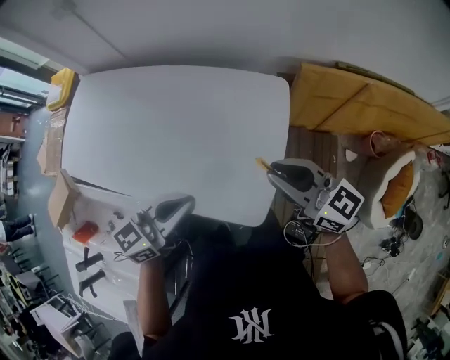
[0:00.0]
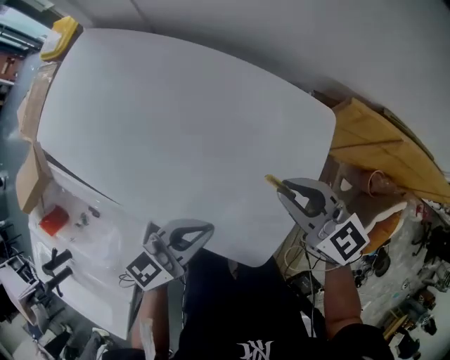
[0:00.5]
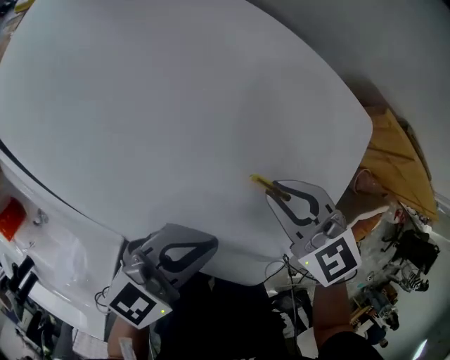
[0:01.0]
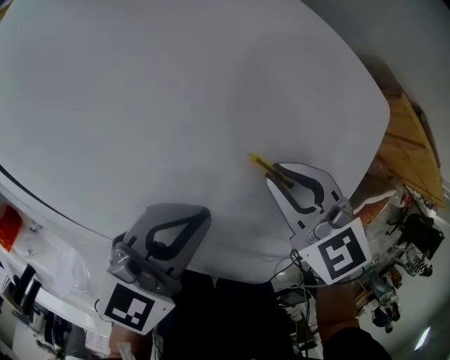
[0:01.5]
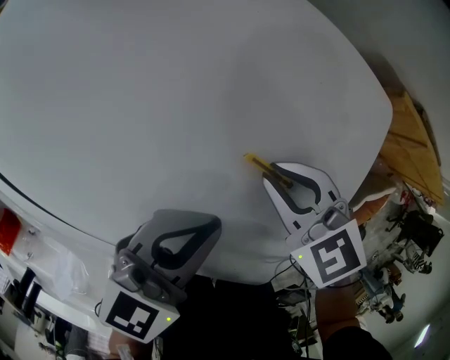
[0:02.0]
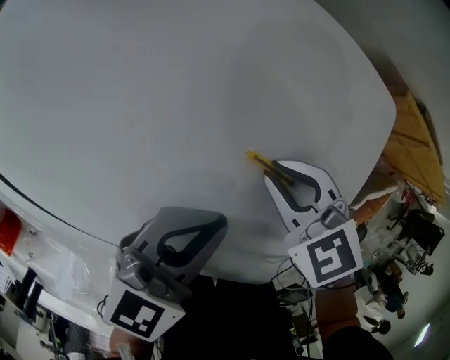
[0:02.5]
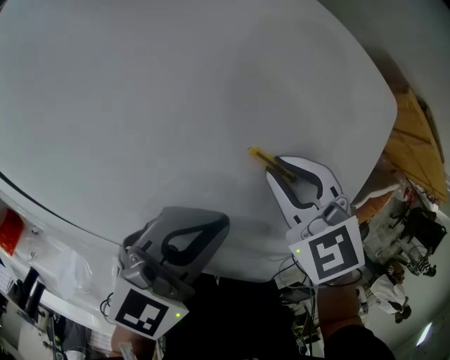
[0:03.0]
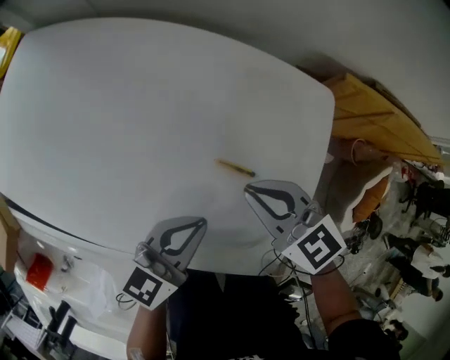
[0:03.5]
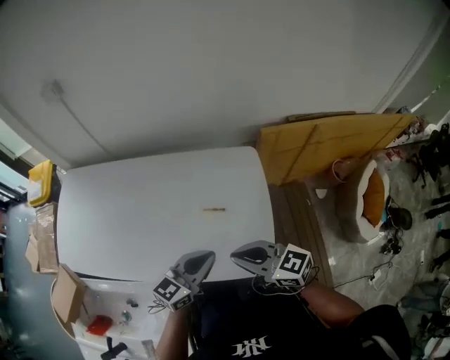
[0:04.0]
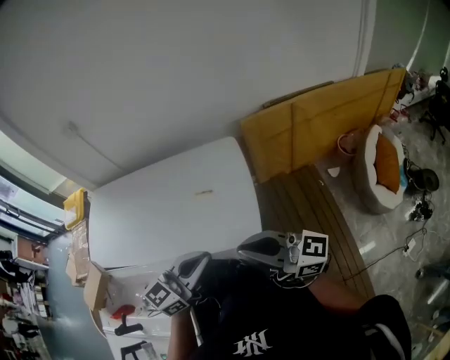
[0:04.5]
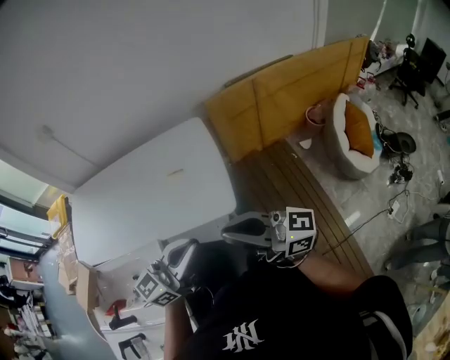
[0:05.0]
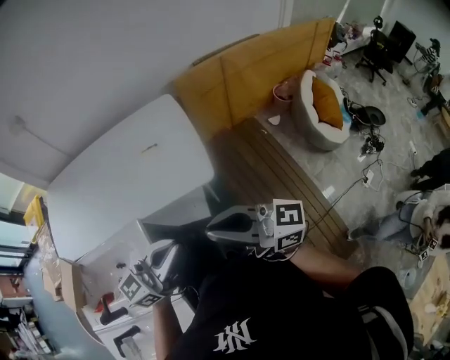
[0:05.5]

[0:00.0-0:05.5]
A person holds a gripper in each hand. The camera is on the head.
0:00.0 to 0:02.0: The right gripper goes roughly 35 cm downward, forward and to the left, and tips its fingers downward by about 40 degrees. Meanwhile the left gripper heads downward and forward, covering roughly 25 cm.
0:02.0 to 0:03.5: The right gripper shifts approximately 10 cm upward.
0:03.5 to 0:05.5: The pair of grippers is taken about 50 cm. The left gripper rotates roughly 40 degrees; the right gripper tips its fingers upward by roughly 50 degrees.

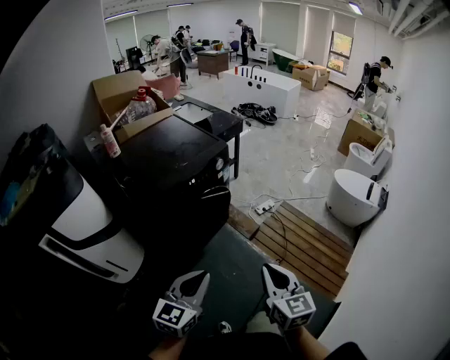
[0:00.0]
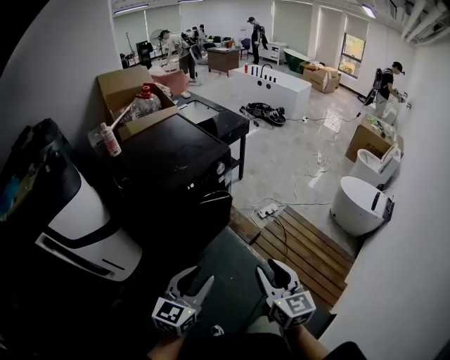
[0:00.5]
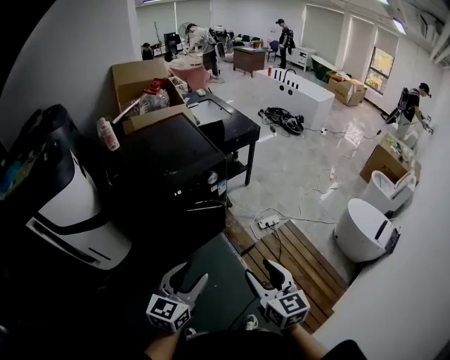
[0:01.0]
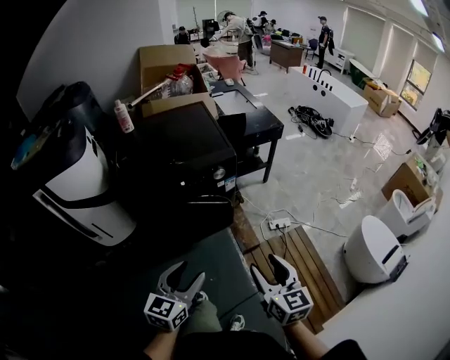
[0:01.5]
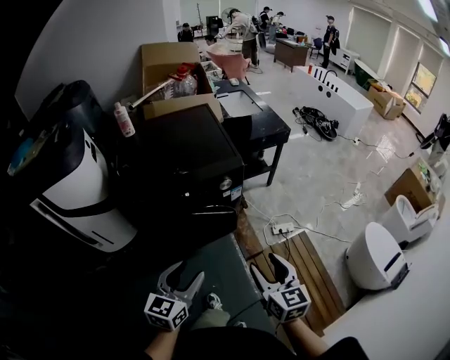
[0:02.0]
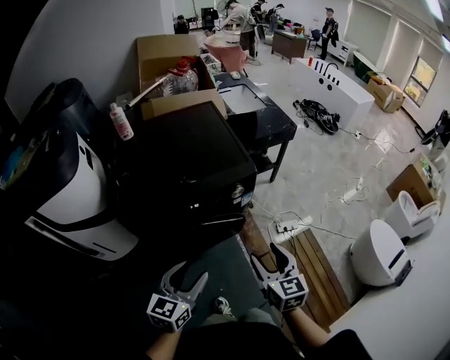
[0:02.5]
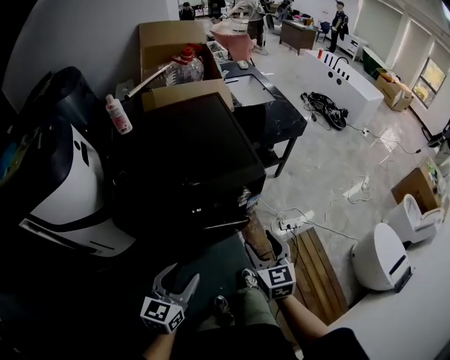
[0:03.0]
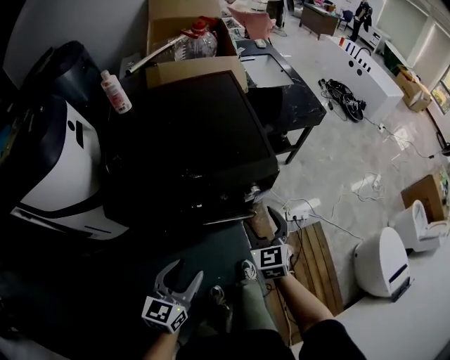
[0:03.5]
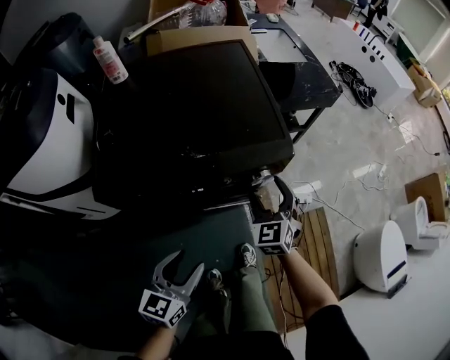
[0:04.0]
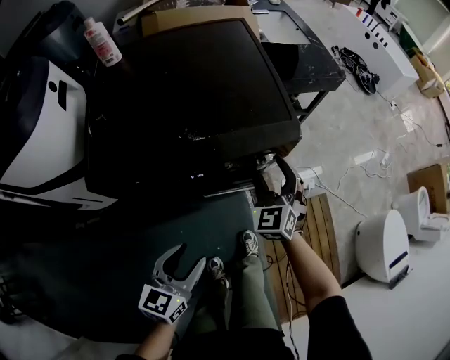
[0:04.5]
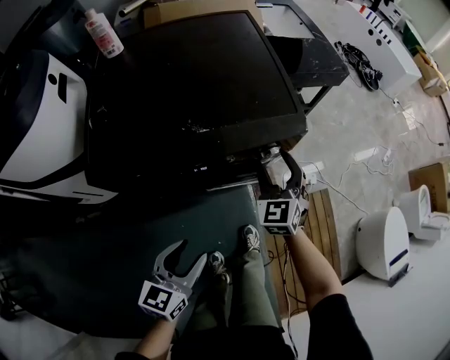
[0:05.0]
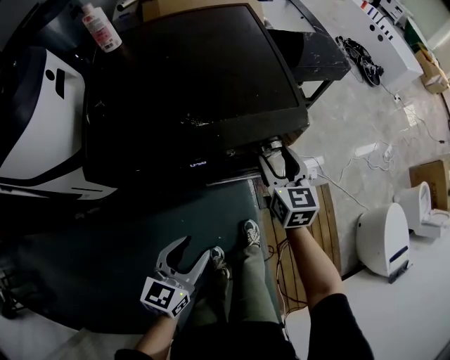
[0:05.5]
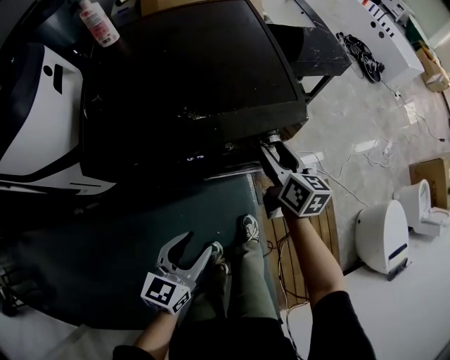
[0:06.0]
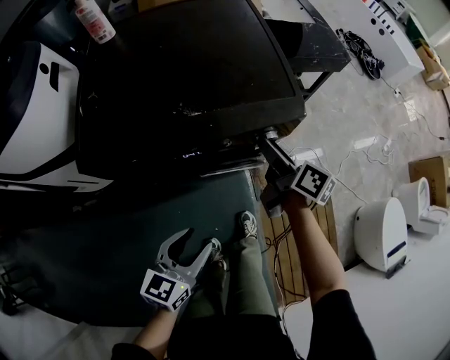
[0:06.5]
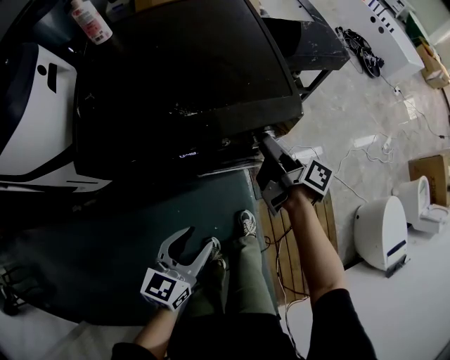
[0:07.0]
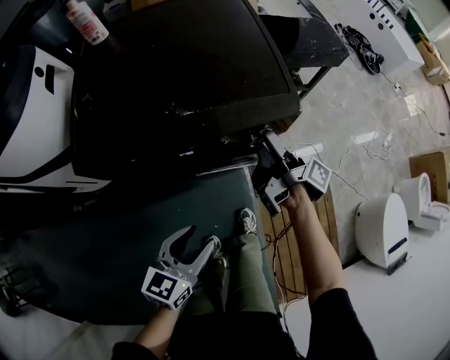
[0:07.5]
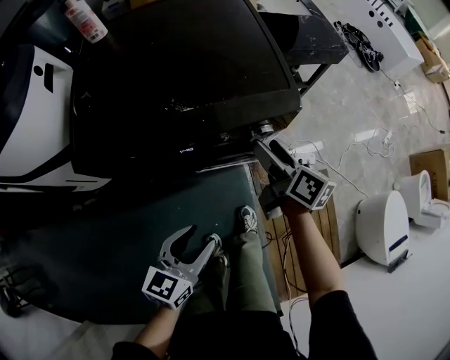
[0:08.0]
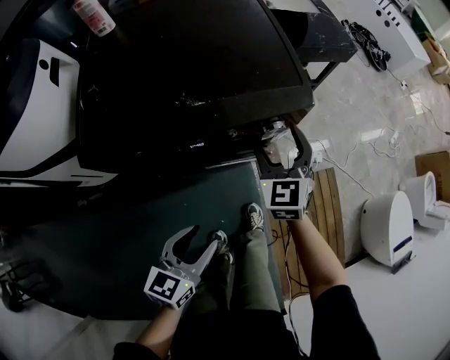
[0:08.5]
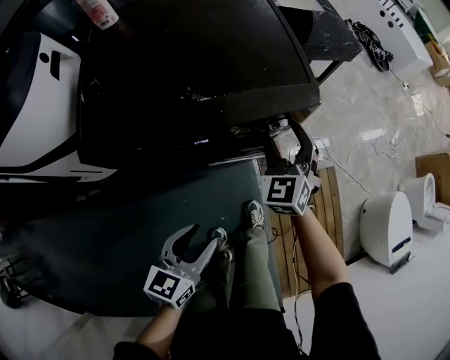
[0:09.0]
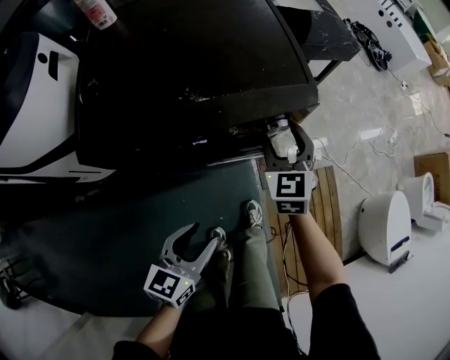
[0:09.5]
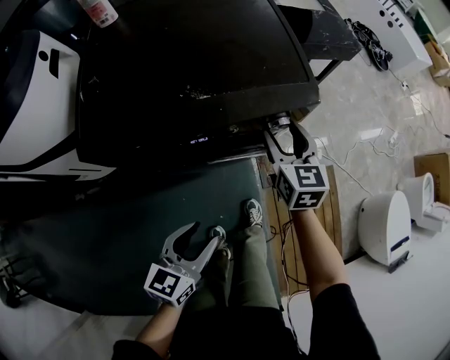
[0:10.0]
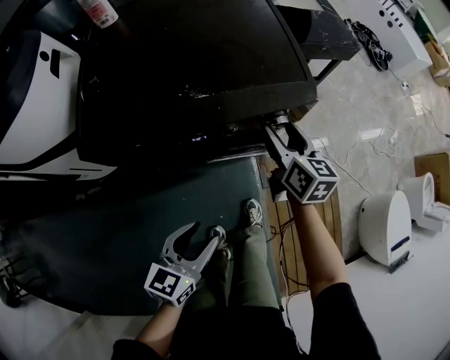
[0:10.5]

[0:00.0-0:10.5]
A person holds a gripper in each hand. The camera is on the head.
0:00.0 to 0:02.0: The left gripper shifts by about 25 cm, changes its angle by some 30 degrees, and opens. Meanwhile the right gripper moves approximately 30 cm, swivels roughly 30 degrees, and opens up.
0:02.0 to 0:04.0: The right gripper travels forward and downward by approximately 40 cm, and swivels some 40 degrees. Meanwhile the left gripper moves forward, downward and to the left, approximately 20 cm.
0:04.0 to 0:06.5: The right gripper rotates around the line of its fingers by roughly 80 degrees, clockwise from behind.
0:06.5 to 0:08.5: The right gripper rolls counterclockwise, seen from behind, by roughly 80 degrees.
0:08.5 to 0:10.5: The right gripper rolls clockwise, seen from behind, by some 40 degrees.

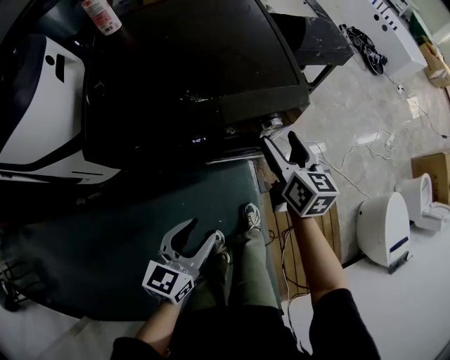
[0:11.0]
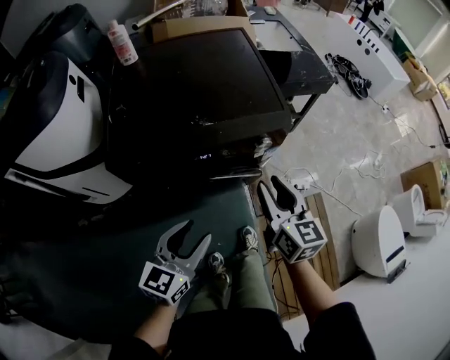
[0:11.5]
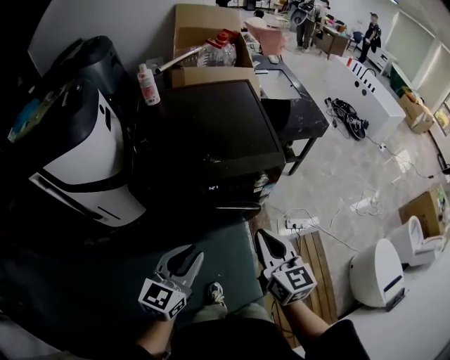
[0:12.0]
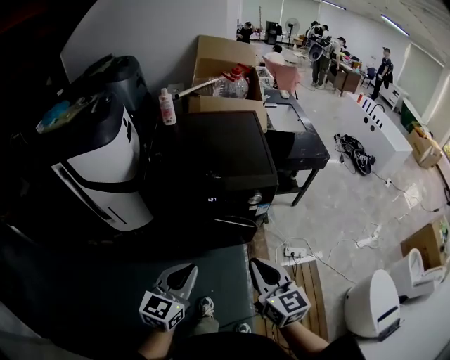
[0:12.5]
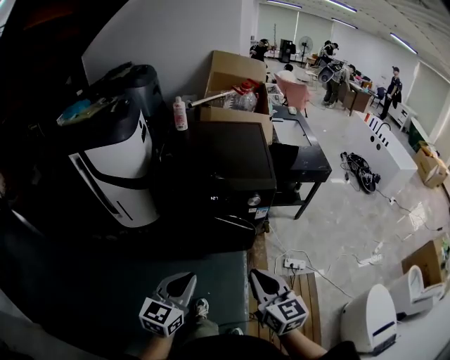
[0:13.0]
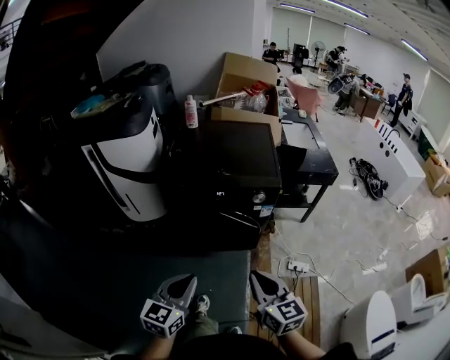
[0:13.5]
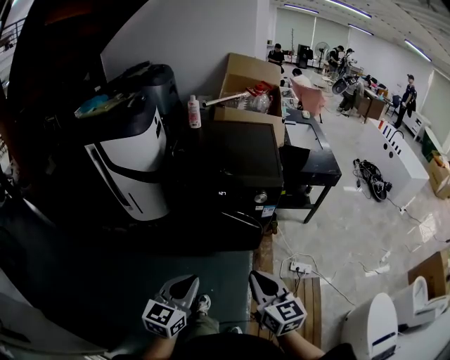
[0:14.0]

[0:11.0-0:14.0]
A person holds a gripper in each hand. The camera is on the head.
0:11.0 to 0:12.5: The left gripper goes some 20 cm upward and backward, changes its angle by some 20 degrees, and closes its fingers, while the right gripper travels backward and upward by about 35 cm, changes its angle by some 20 degrees, and closes up.
0:12.5 to 0:14.0: Both grippers move backward, about 10 cm.

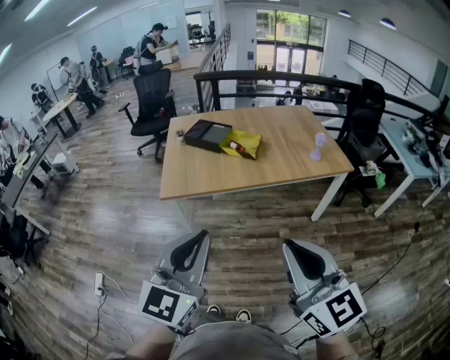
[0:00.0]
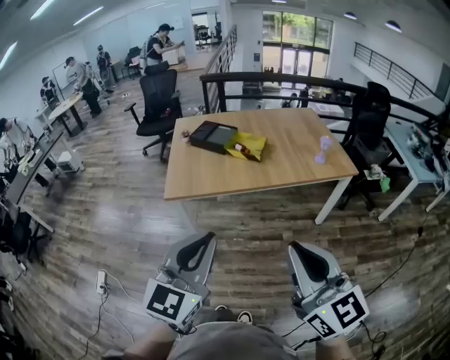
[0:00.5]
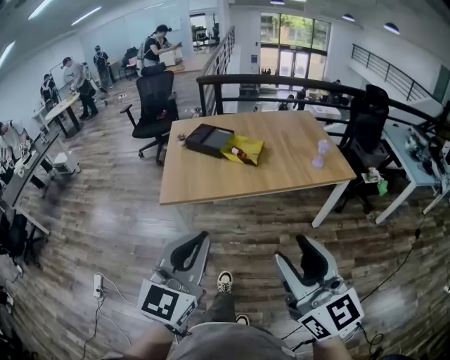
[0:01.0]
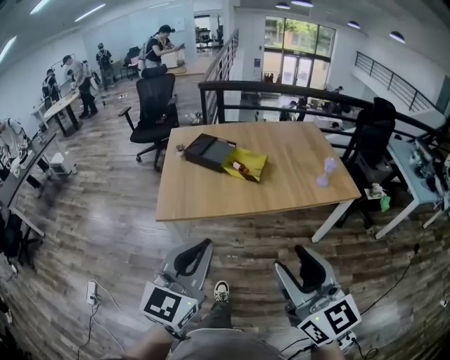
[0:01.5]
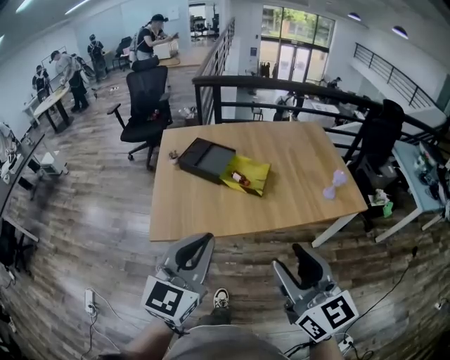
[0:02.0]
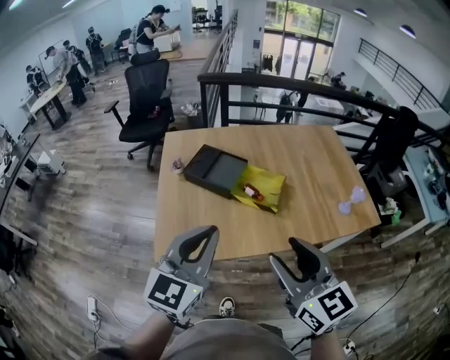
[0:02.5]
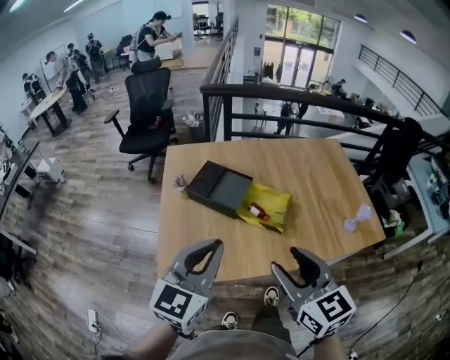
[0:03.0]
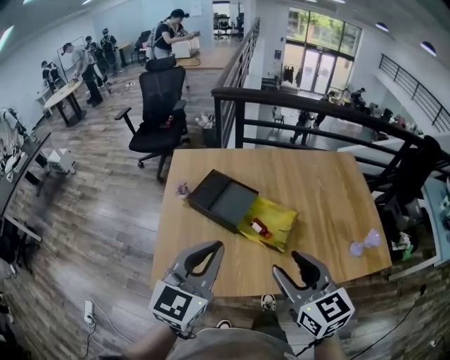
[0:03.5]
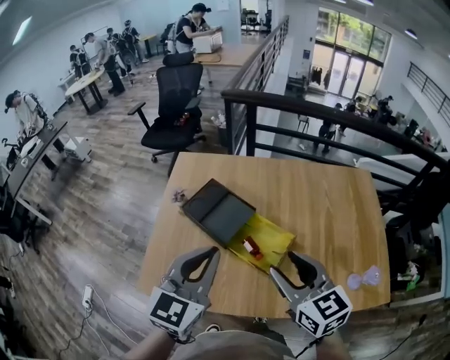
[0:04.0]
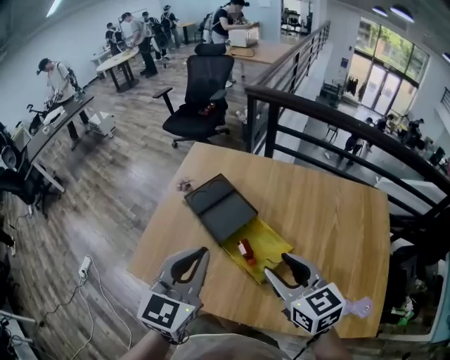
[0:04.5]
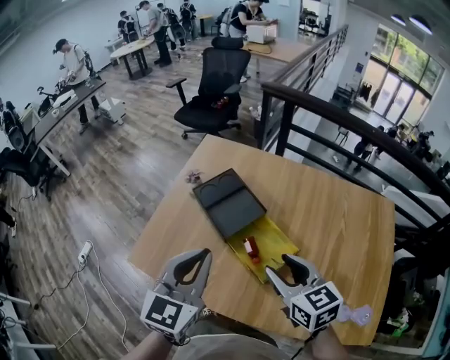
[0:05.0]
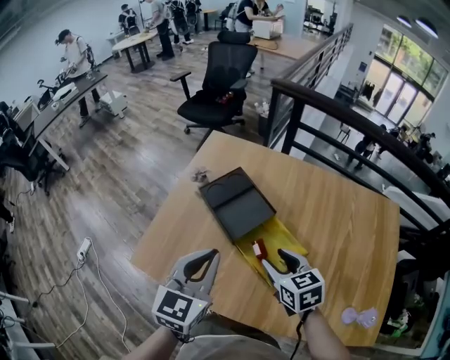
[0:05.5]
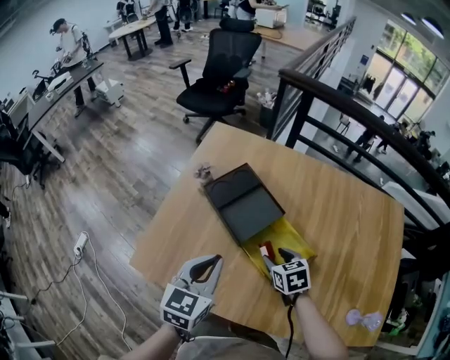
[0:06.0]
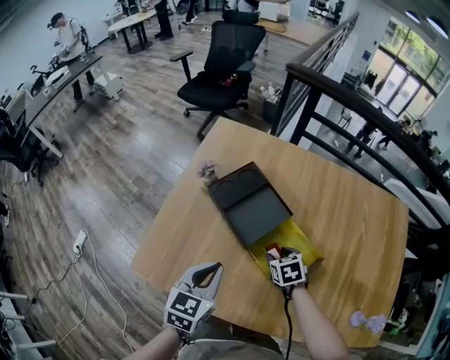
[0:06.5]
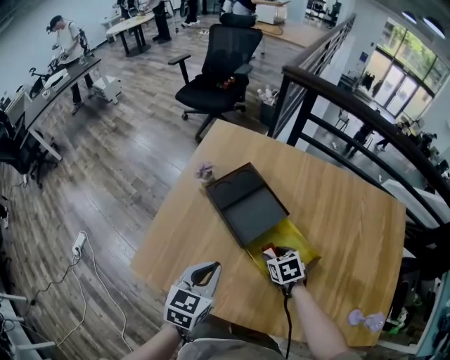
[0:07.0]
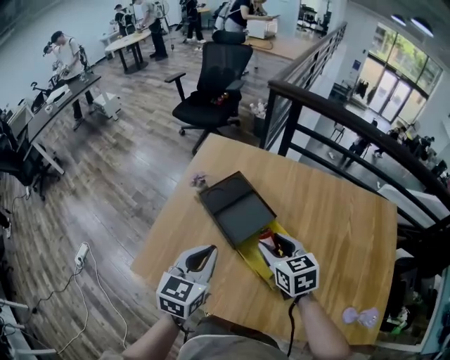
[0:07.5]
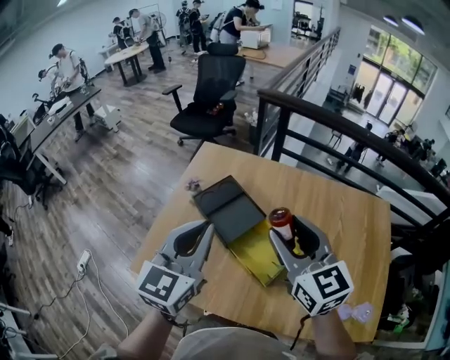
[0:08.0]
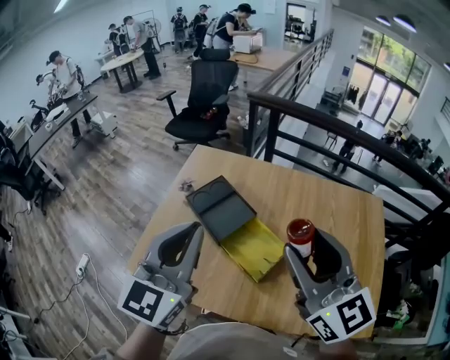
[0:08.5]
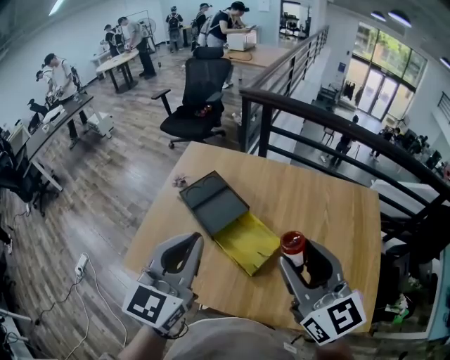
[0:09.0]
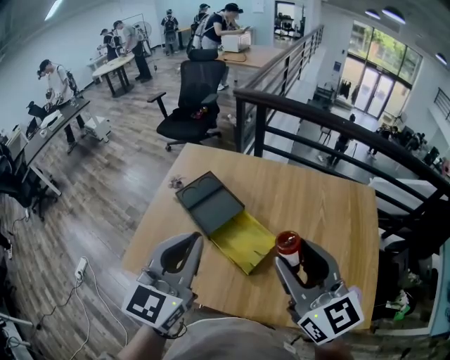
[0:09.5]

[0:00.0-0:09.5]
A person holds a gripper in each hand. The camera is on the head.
0:00.0 to 0:02.0: Both grippers move forward, roughly 30 cm. The right gripper opens its fingers.
0:02.0 to 0:04.0: The two grippers go roughly 40 cm forward. The right gripper turns by some 20 degrees.
0:04.0 to 0:05.5: The left gripper shifts about 10 cm downward, and turns by roughly 20 degrees. The right gripper heads downward and forward, covering some 20 cm, and turns by about 20 degrees.
0:05.5 to 0:07.5: The right gripper shifts about 5 cm forward, and reaches about 20 cm downward, then returns. Meanwhile the left gripper moves downward, about 5 cm.
0:07.5 to 0:09.5: The right gripper shifts approximately 30 cm upward, backward and to the right, and angles its fingers upward, by some 30 degrees, while the left gripper goes about 25 cm upward, to the right and backward, and rotates roughly 20 degrees.
